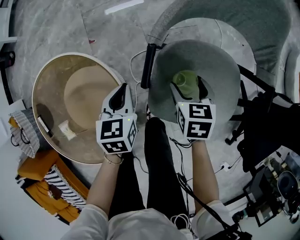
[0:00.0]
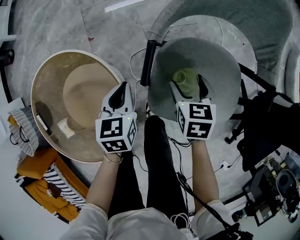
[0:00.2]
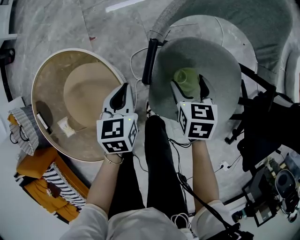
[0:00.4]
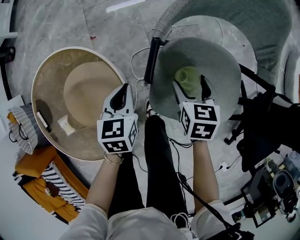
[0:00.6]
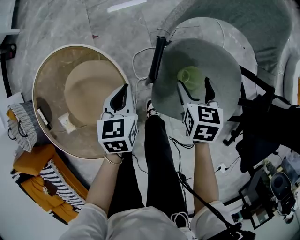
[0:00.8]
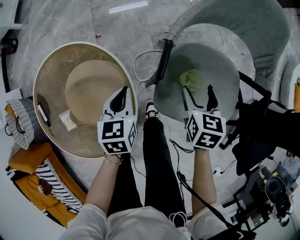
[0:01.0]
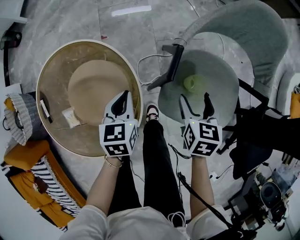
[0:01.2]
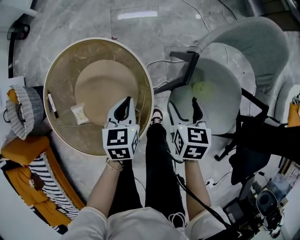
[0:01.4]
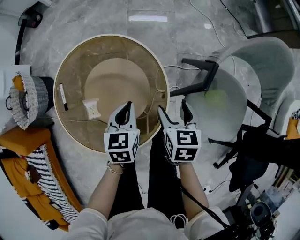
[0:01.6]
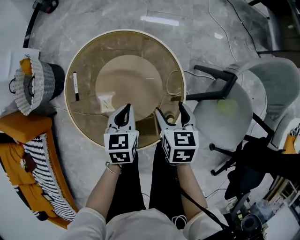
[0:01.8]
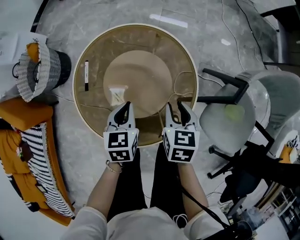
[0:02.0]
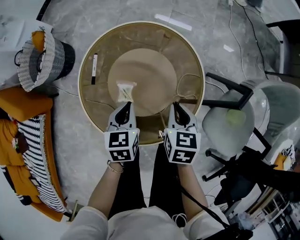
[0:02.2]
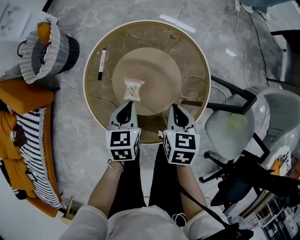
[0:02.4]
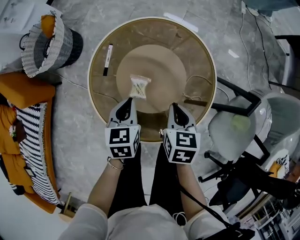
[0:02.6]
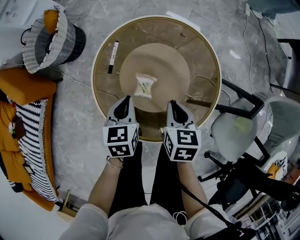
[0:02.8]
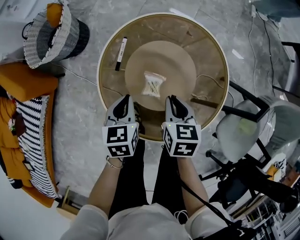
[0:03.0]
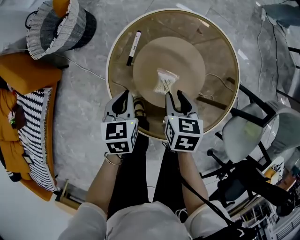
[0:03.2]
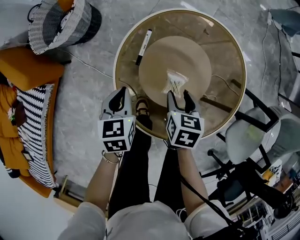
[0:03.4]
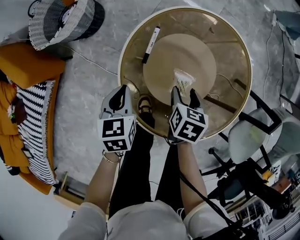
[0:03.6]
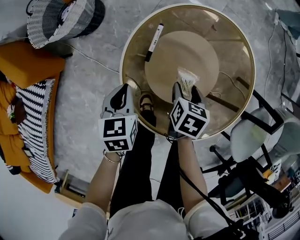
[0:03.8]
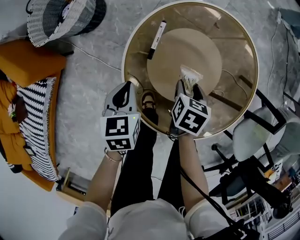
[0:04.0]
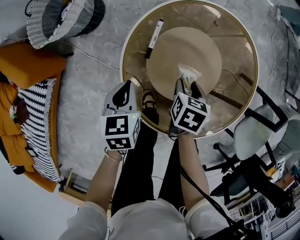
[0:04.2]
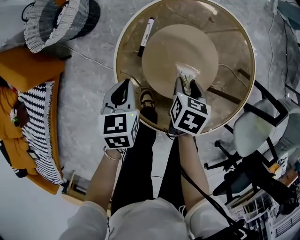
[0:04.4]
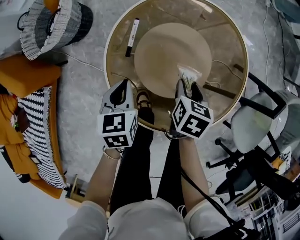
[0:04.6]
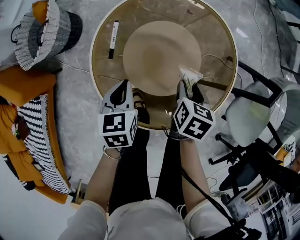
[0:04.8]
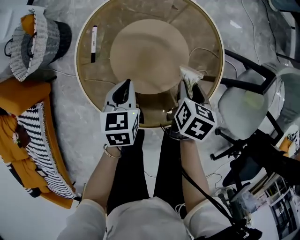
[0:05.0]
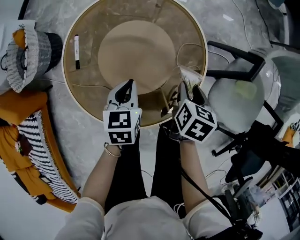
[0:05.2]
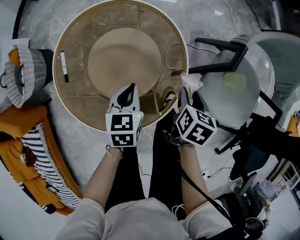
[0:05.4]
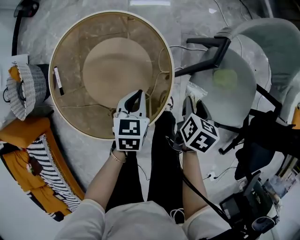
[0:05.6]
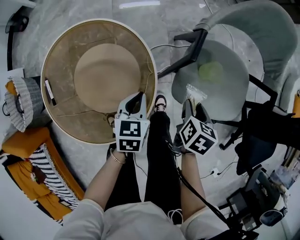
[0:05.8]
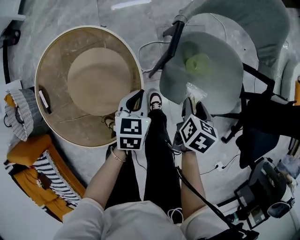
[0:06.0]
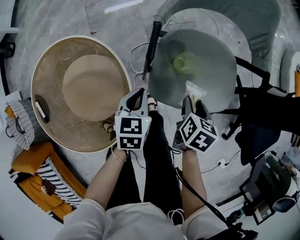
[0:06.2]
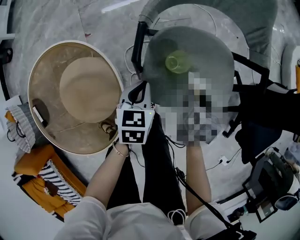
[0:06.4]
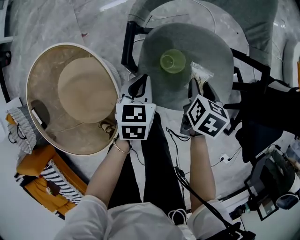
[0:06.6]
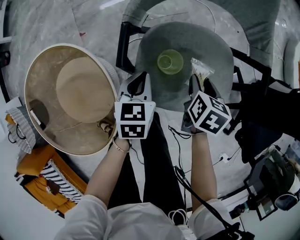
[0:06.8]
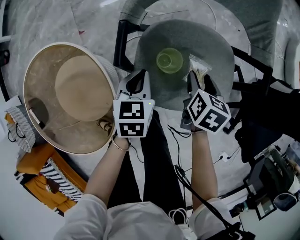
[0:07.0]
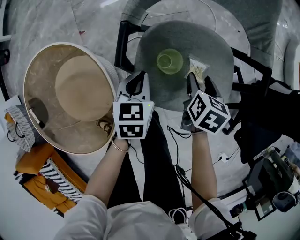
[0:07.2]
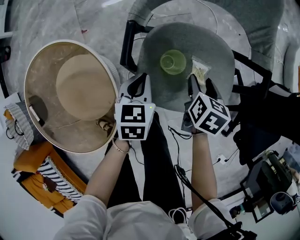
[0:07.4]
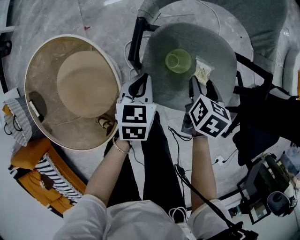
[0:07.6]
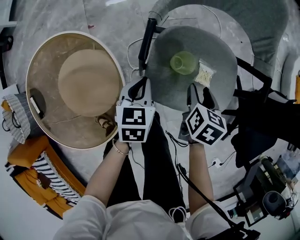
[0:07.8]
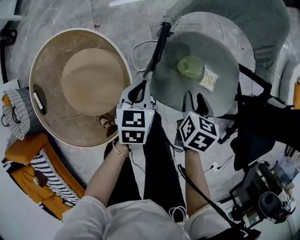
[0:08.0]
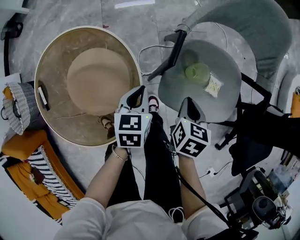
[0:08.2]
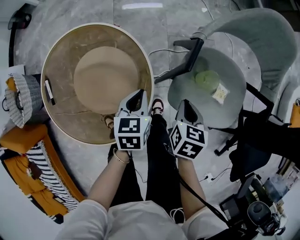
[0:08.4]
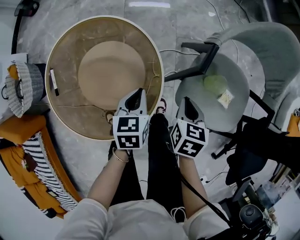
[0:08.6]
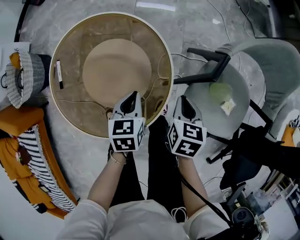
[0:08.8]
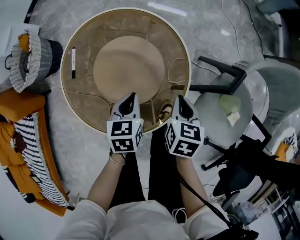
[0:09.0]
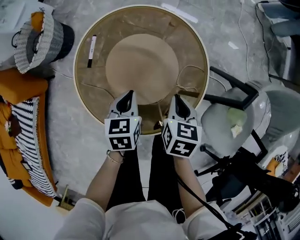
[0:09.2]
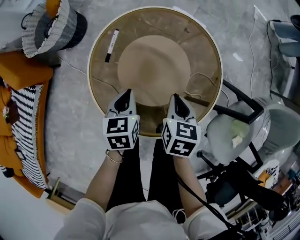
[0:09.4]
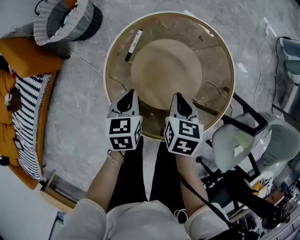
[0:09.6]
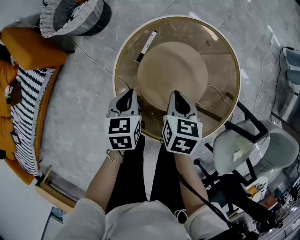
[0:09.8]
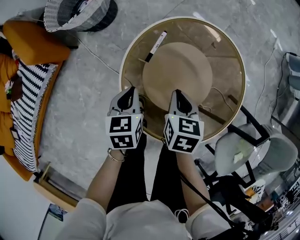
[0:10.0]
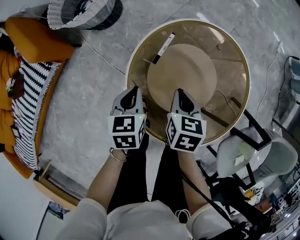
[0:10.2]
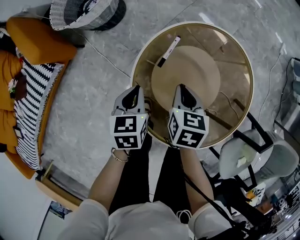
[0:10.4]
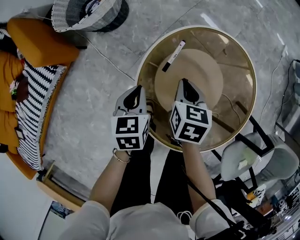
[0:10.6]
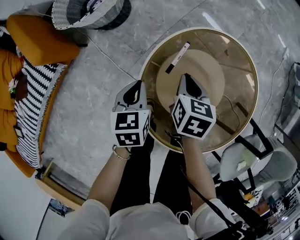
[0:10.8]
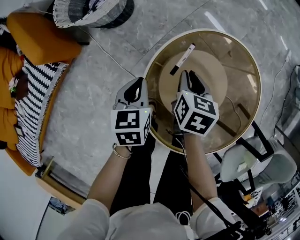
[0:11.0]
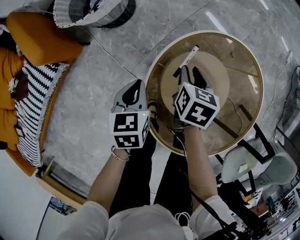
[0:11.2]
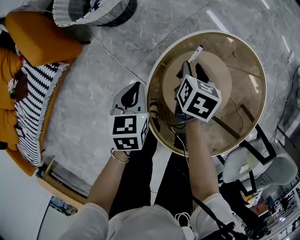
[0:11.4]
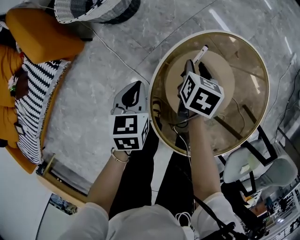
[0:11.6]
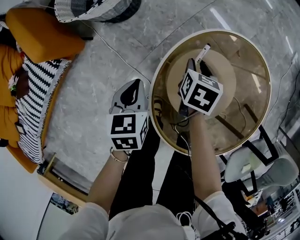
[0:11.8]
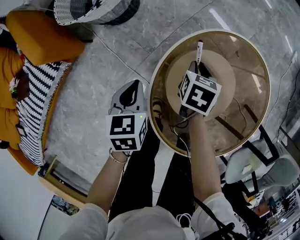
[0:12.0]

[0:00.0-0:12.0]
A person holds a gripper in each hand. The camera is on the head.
0:00.0 to 0:01.6: The right gripper moves to the left, approximately 25 cm. The left gripper moves to the left and backward, roughly 20 cm.
0:01.6 to 0:03.0: The left gripper ends up some 30 cm from where it was, and rotates some 30 degrees. The right gripper shifts by roughly 30 cm, changes its angle by about 20 degrees, and closes its fingers.
0:03.0 to 0:04.4: The left gripper goes roughly 10 cm to the left, while the right gripper heads downward, covering some 10 cm, and opens up.
0:04.4 to 0:06.0: Both grippers are carried about 50 cm. The left gripper turns by roughly 50 degrees. Meanwhile the right gripper twists about 40 degrees clockwise, seen from behind.
0:06.0 to 0:07.6: The grippers both shift forward and to the right by about 15 cm.
0:07.6 to 0:09.0: The left gripper changes place by about 35 cm, and turns by some 40 degrees. Meanwhile the right gripper changes place by approximately 35 cm, rotates some 40 degrees, and closes up.
0:09.0 to 0:10.4: The left gripper changes place by approximately 35 cm, and turns by approximately 30 degrees. The right gripper moves about 35 cm, and swivels about 30 degrees.
0:10.4 to 0:12.0: The right gripper goes about 15 cm forward and downward; the left gripper is displaced to the left by about 10 cm.

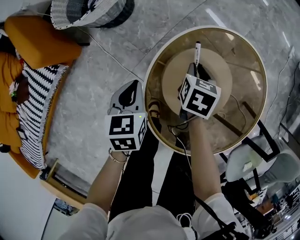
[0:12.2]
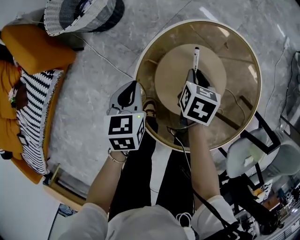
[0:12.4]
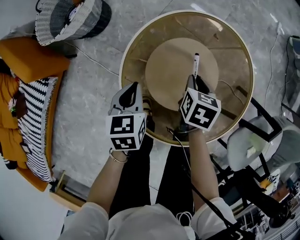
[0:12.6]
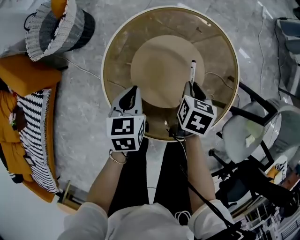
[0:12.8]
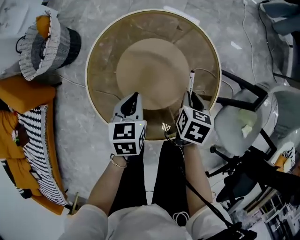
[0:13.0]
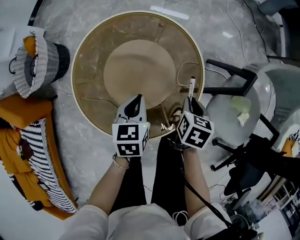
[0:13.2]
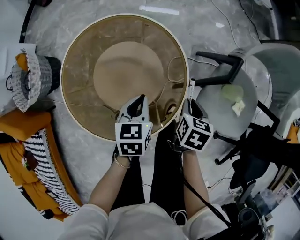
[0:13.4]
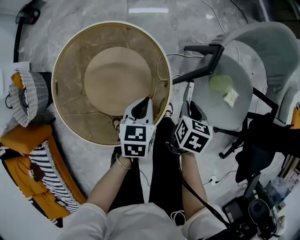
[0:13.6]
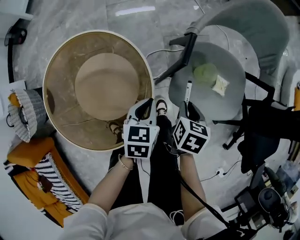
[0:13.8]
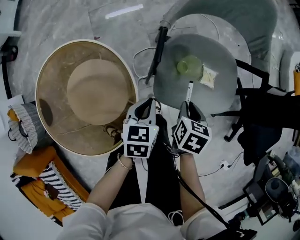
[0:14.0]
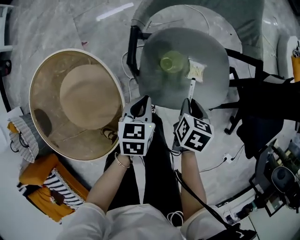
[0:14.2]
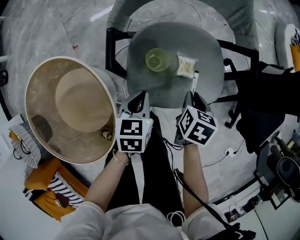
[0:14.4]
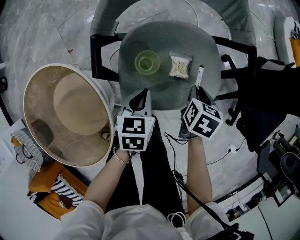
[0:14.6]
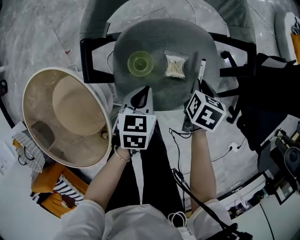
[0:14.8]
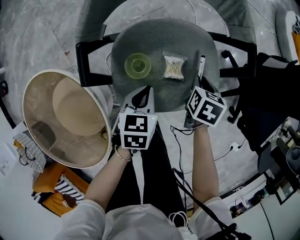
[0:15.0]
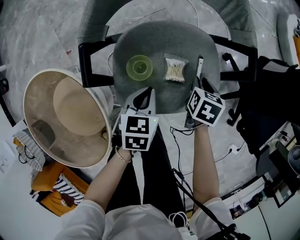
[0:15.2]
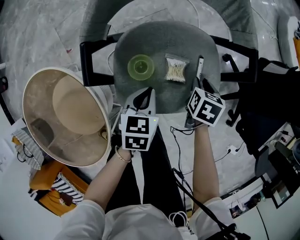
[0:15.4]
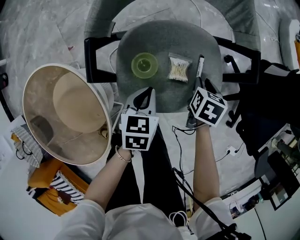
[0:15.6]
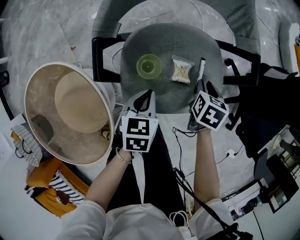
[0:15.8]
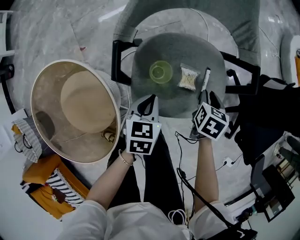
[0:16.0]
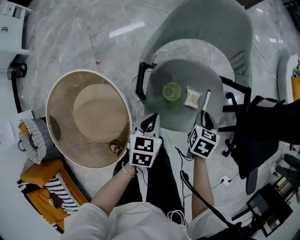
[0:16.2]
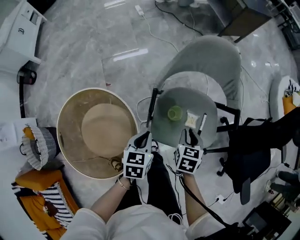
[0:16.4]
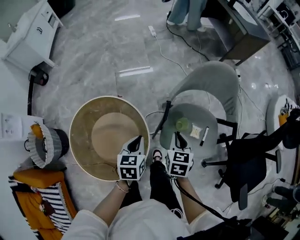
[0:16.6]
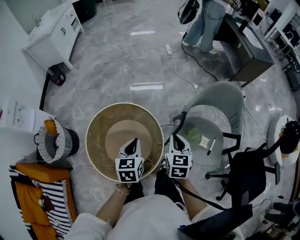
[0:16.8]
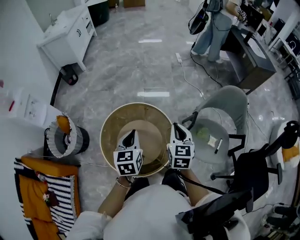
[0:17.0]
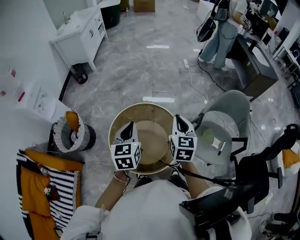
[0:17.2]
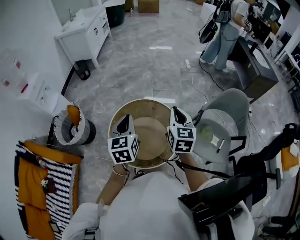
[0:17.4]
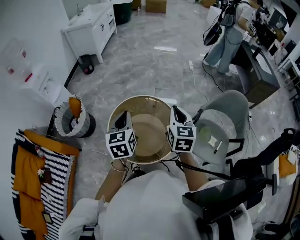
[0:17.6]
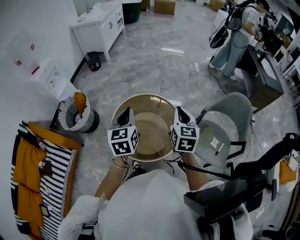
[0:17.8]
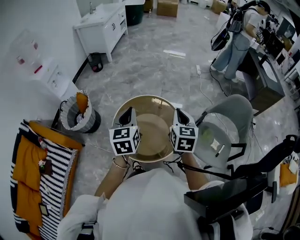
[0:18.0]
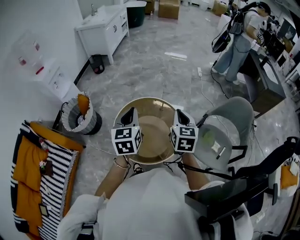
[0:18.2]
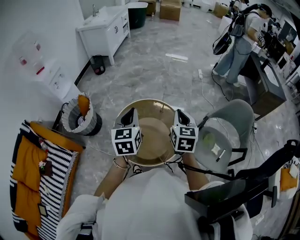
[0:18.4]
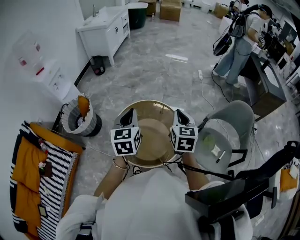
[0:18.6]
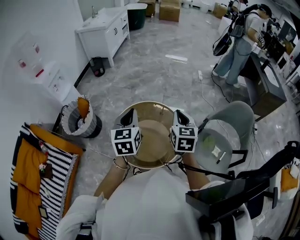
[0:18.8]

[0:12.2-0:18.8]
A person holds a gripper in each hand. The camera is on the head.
0:12.2 to 0:13.8: The two grippers travel together, roughly 60 cm. The right gripper twists approximately 50 degrees clockwise, seen from behind, while the left gripper turns by some 60 degrees.
0:13.8 to 0:15.4: Both grippers travel together to the right and forward, approximately 25 cm. The left gripper swivels about 20 degrees.
0:15.4 to 0:17.2: Both grippers are carried roughly 50 cm. The right gripper tilts its fingers approximately 50 degrees upward, while the left gripper swivels approximately 50 degrees.
0:17.2 to 0:18.8: The left gripper changes place by some 5 cm.

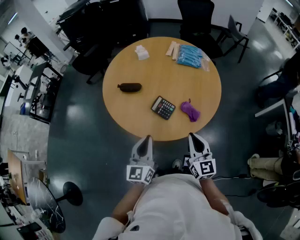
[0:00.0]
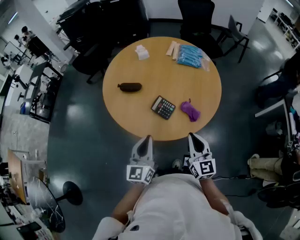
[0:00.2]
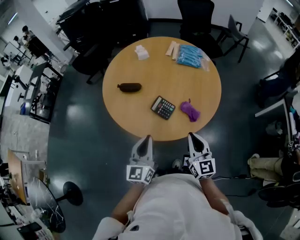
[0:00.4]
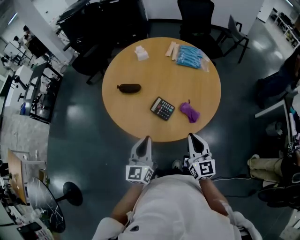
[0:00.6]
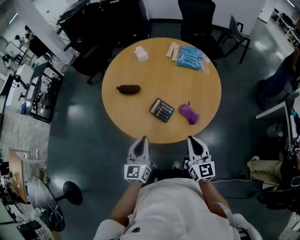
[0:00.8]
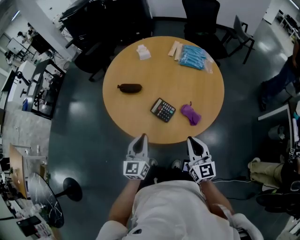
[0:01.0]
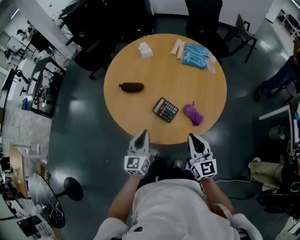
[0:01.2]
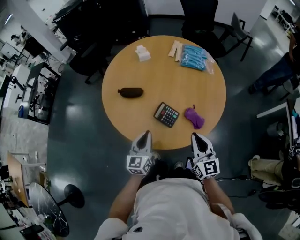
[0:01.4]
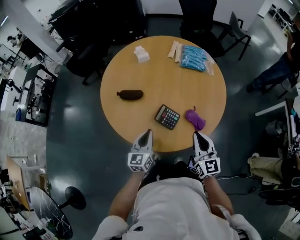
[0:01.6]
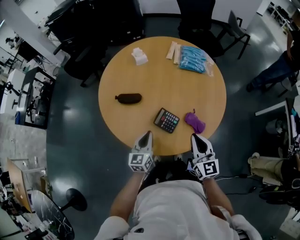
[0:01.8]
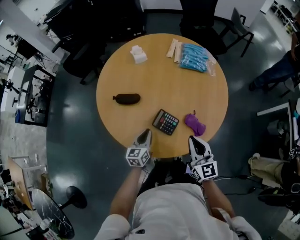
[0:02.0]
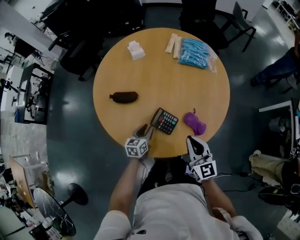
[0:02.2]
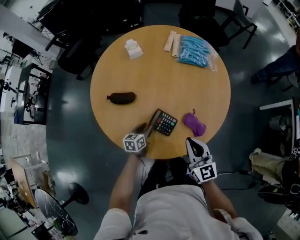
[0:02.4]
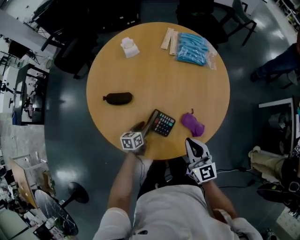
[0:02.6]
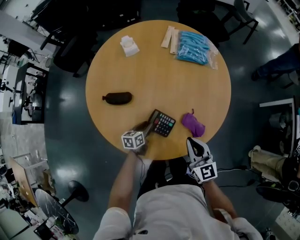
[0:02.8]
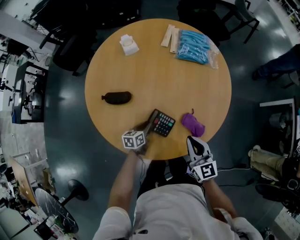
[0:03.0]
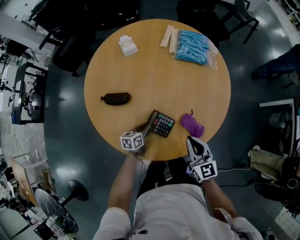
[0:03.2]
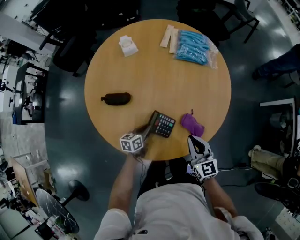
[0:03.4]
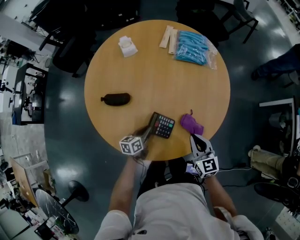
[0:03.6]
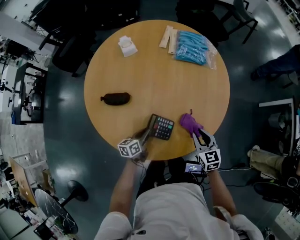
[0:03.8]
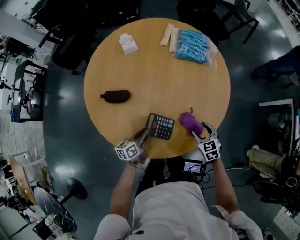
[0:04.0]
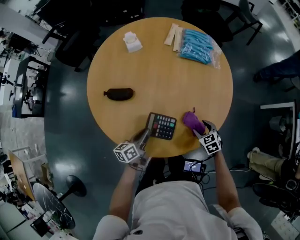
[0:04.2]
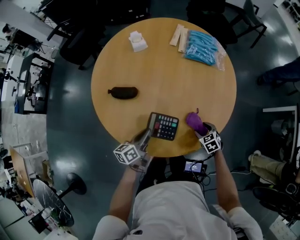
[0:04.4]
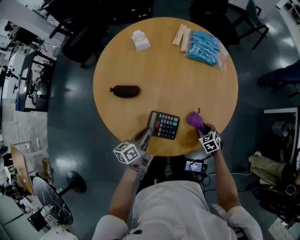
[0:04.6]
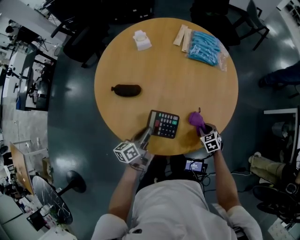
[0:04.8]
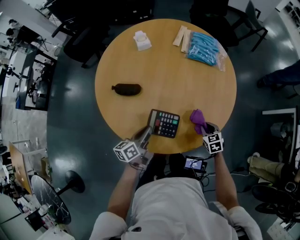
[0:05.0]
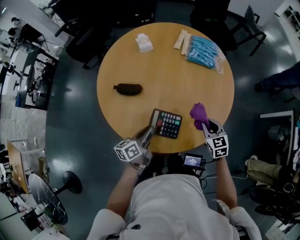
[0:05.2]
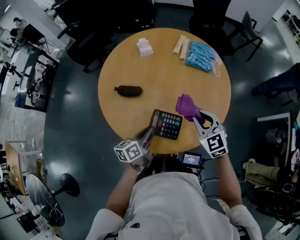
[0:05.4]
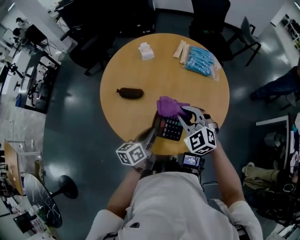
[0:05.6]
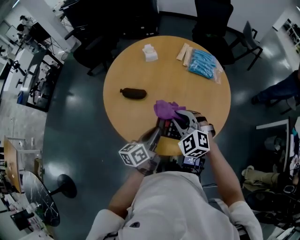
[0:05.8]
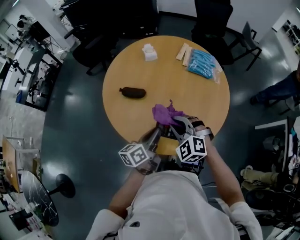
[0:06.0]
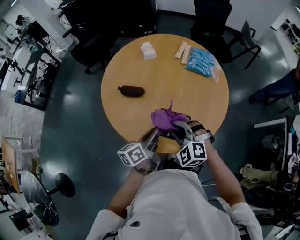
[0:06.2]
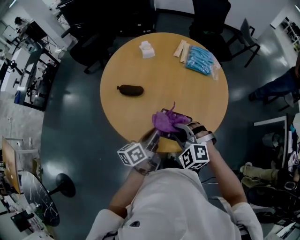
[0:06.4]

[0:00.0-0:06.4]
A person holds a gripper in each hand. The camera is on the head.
0:00.0 to 0:01.6: The right gripper heads forward, covering roughly 10 cm. The left gripper goes approximately 15 cm forward and downward.
0:01.6 to 0:03.2: The right gripper shifts roughly 10 cm downward and forward. Meanwhile the left gripper goes some 25 cm downward and forward, changes its angle by some 40 degrees, and opens, then closes again.
0:03.2 to 0:04.8: The right gripper is displaced downward by about 20 cm, tilts its fingers about 40 degrees downward, and opens, then closes once more. The left gripper shifts some 15 cm upward and backward, and swivels some 20 degrees.
0:04.8 to 0:06.4: The right gripper heads upward and to the left, covering some 35 cm, and rotates around the line of its fingers by approximately 50 degrees, counterclockwise from behind. Meanwhile the left gripper moves upward, roughly 15 cm.
